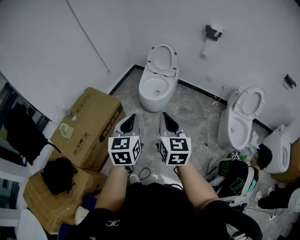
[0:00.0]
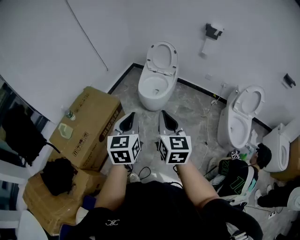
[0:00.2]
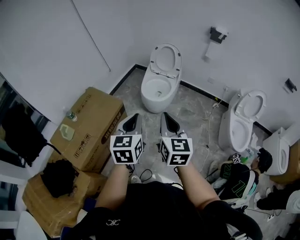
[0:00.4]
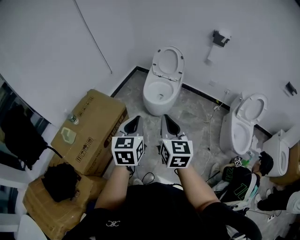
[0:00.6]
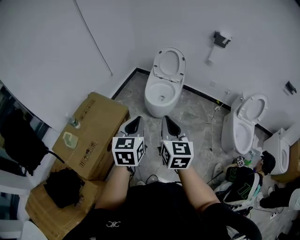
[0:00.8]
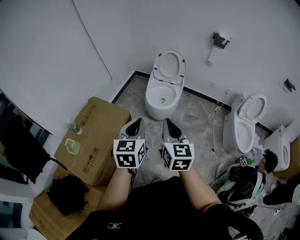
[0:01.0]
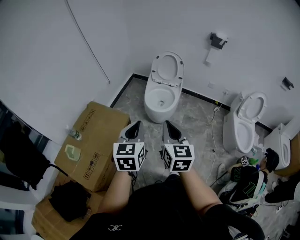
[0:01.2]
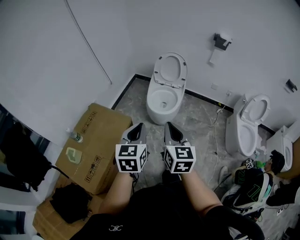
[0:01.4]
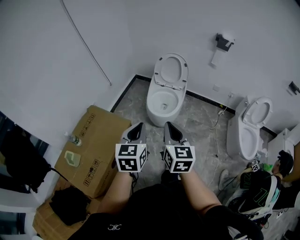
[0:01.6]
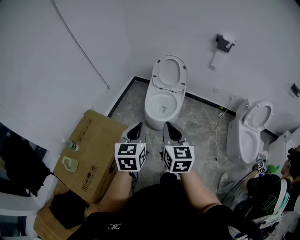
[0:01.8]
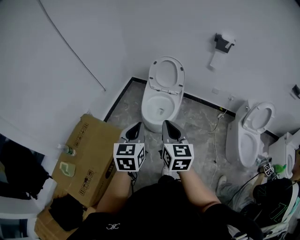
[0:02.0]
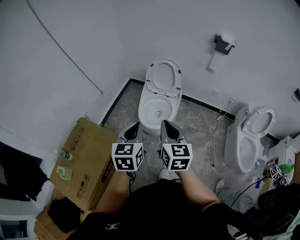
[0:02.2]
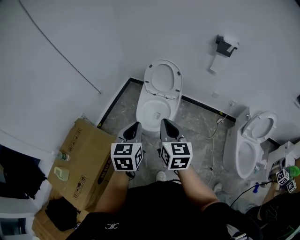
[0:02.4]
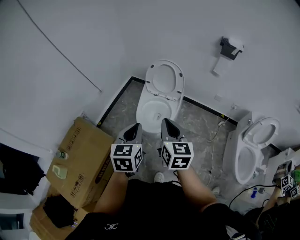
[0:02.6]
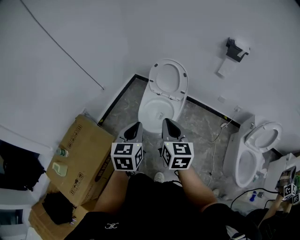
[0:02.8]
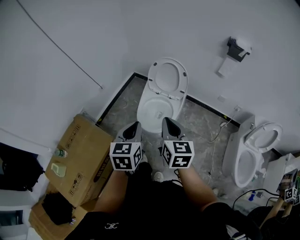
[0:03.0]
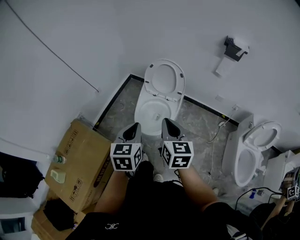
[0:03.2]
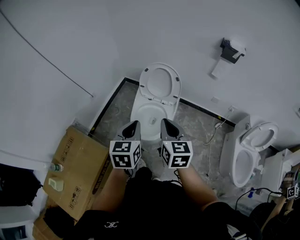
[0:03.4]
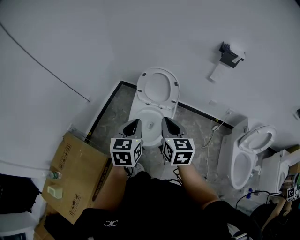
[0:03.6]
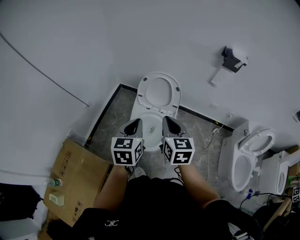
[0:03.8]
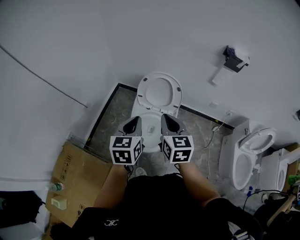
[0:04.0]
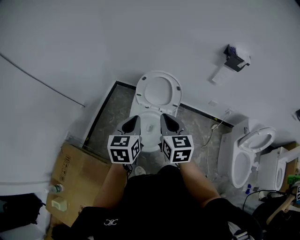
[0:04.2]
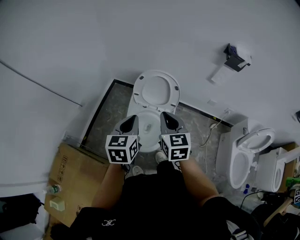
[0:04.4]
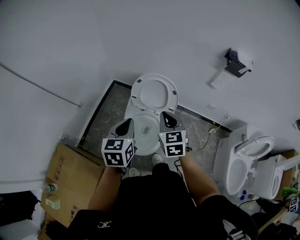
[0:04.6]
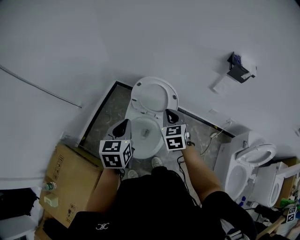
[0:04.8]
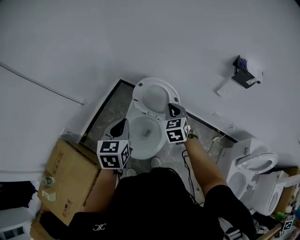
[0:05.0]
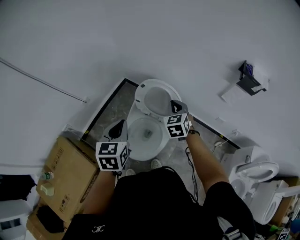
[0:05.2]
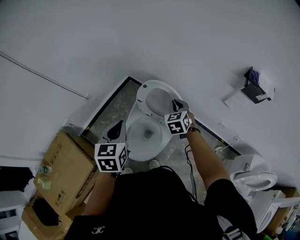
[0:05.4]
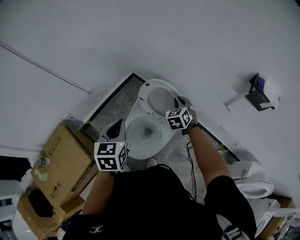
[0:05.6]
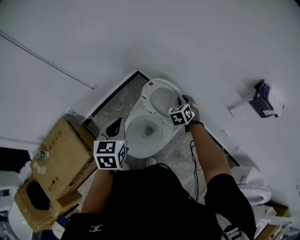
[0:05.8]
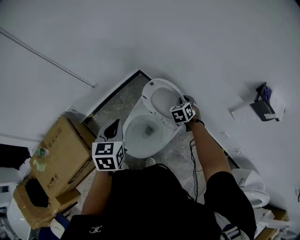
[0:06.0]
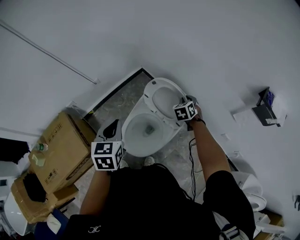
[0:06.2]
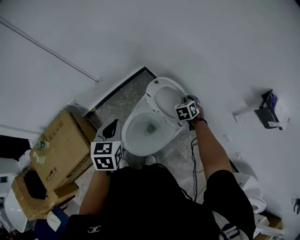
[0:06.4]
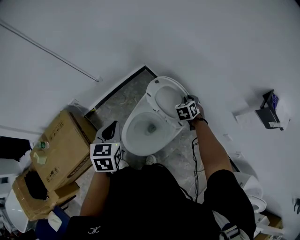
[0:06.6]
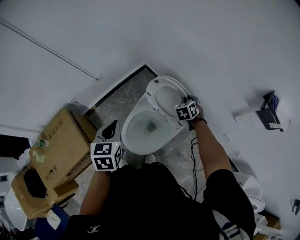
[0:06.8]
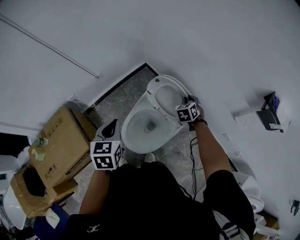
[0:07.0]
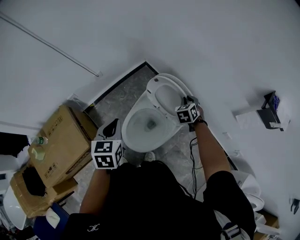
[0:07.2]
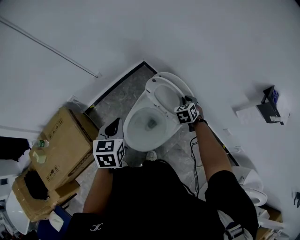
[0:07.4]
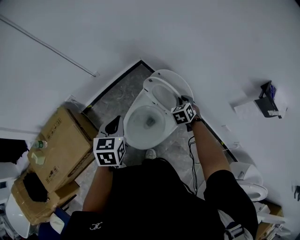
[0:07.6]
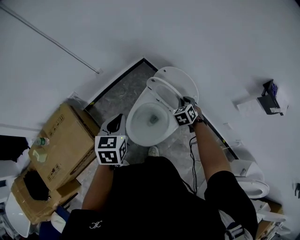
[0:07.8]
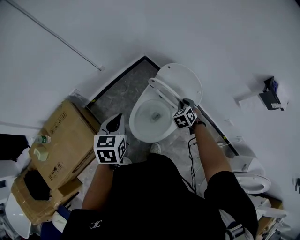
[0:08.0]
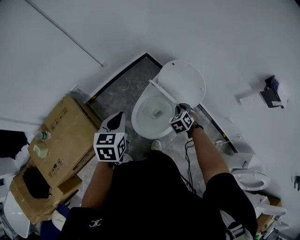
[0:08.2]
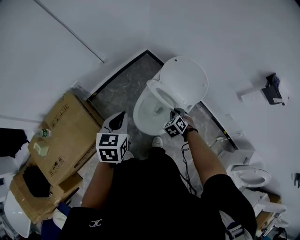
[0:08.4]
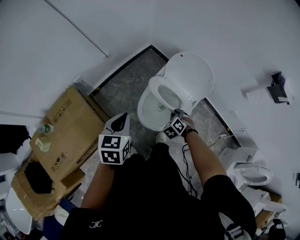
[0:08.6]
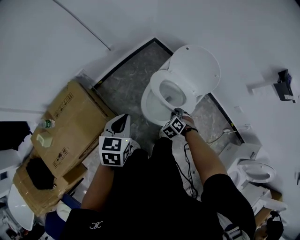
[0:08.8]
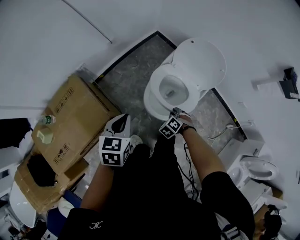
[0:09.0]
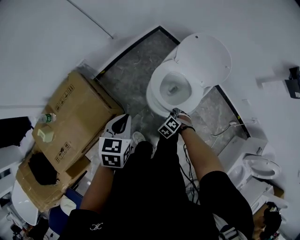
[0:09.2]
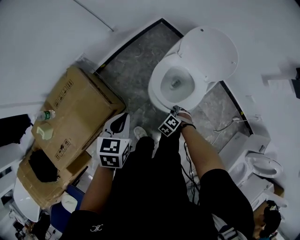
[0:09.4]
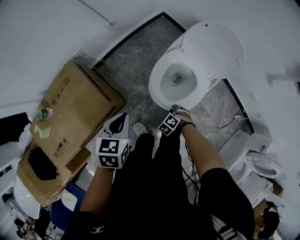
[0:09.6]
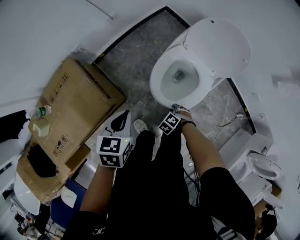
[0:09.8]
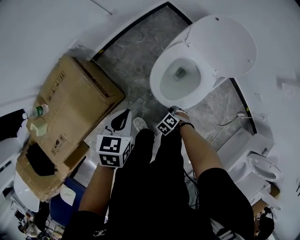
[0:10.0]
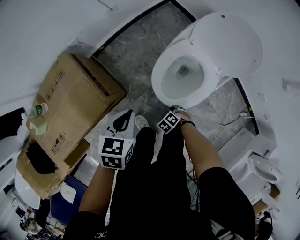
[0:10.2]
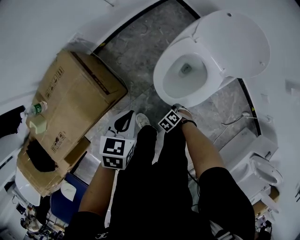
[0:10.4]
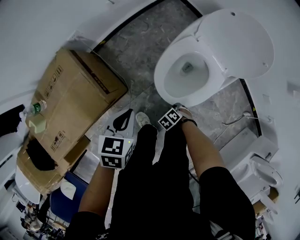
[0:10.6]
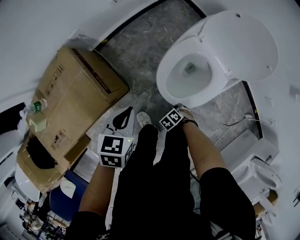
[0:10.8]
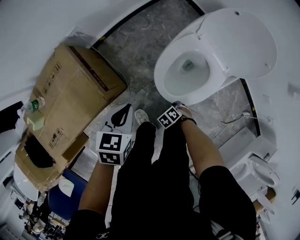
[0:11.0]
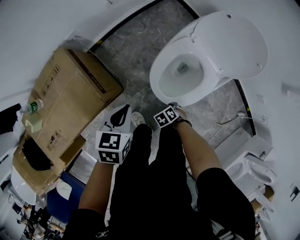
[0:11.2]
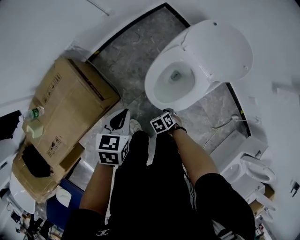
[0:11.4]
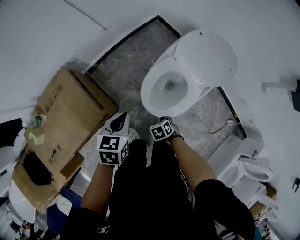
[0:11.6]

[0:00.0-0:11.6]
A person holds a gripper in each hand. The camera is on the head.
0:00.0 to 0:01.4: The grippers both shift to the left and forward by about 20 cm.
0:01.4 to 0:02.8: Both grippers move forward and to the right, approximately 30 cm.
0:02.8 to 0:04.4: Both grippers travel together forward, approximately 25 cm.
0:04.4 to 0:05.8: The right gripper goes roughly 35 cm forward, downward and to the right, and rotates roughly 40 degrees. Meanwhile the left gripper travels forward by about 10 cm, and turns by approximately 30 degrees.
0:05.8 to 0:07.2: The left gripper changes place by about 5 cm; the right gripper moves downward, about 5 cm.
0:07.2 to 0:08.8: The left gripper is displaced backward and to the left by about 20 cm. The right gripper heads backward, to the left and downward, covering some 35 cm, and turns by some 30 degrees.
0:08.8 to 0:10.2: The right gripper heads downward, covering approximately 25 cm, and swivels roughly 20 degrees, while the left gripper is displaced downward by about 15 cm.
0:10.2 to 0:11.6: The right gripper is displaced upward by about 10 cm, and changes its angle by roughly 30 degrees.

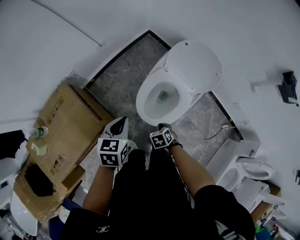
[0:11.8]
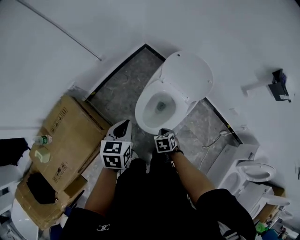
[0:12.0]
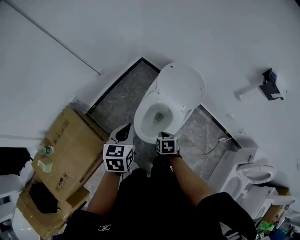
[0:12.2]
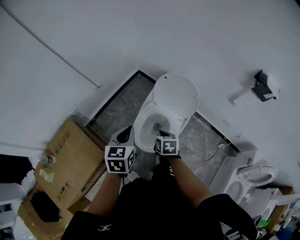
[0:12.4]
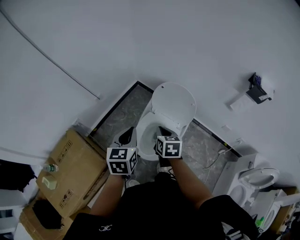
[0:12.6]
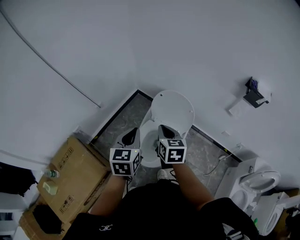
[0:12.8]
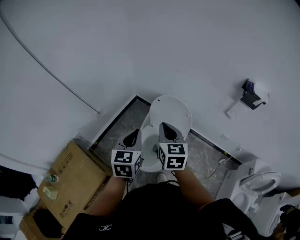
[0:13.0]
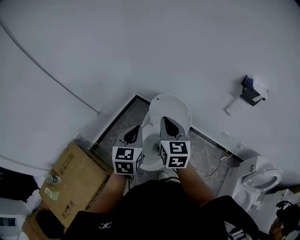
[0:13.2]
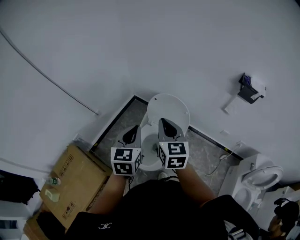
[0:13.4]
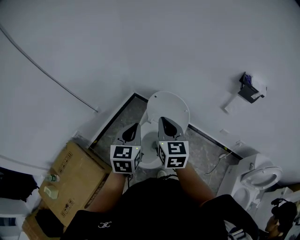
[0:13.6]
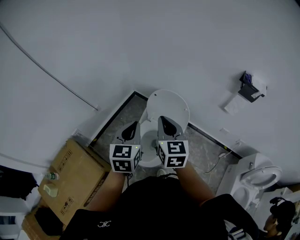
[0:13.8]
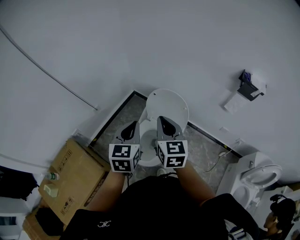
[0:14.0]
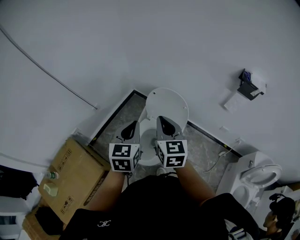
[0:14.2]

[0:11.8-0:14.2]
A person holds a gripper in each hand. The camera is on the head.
0:11.8 to 0:13.0: The right gripper travels upward by roughly 40 cm, and angles its fingers upward, by roughly 50 degrees, while the left gripper heads upward and to the right, covering roughly 25 cm, and changes its angle by about 30 degrees.
0:13.0 to 0:14.2: The grippers make only small movements.

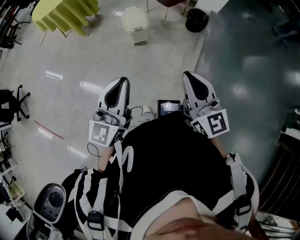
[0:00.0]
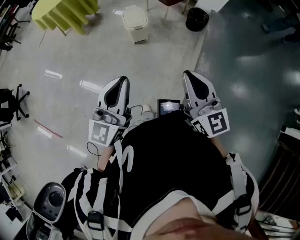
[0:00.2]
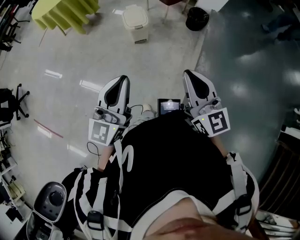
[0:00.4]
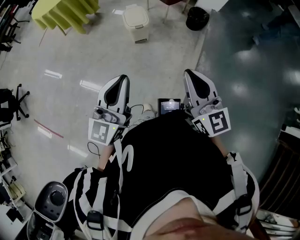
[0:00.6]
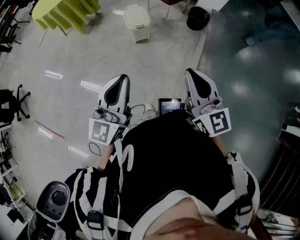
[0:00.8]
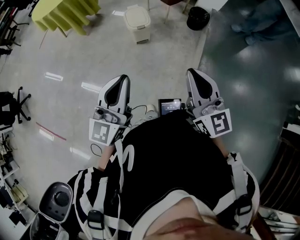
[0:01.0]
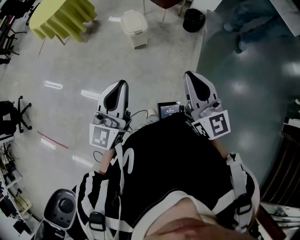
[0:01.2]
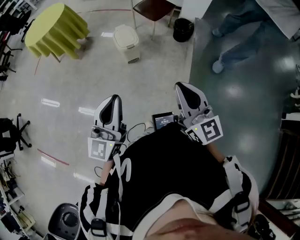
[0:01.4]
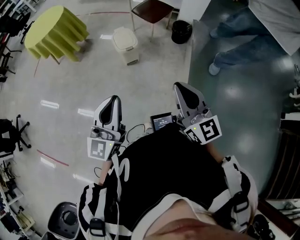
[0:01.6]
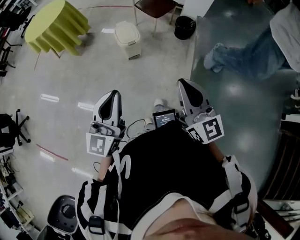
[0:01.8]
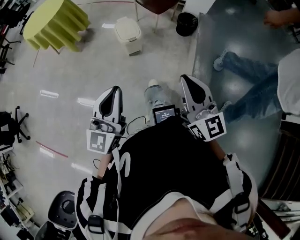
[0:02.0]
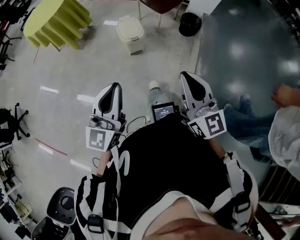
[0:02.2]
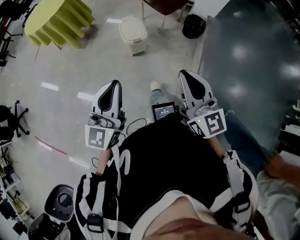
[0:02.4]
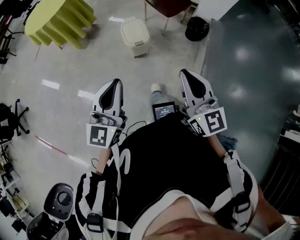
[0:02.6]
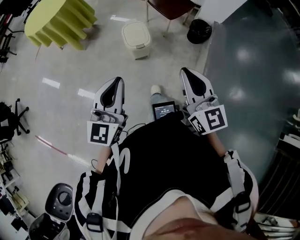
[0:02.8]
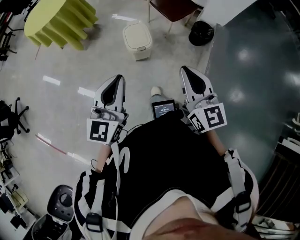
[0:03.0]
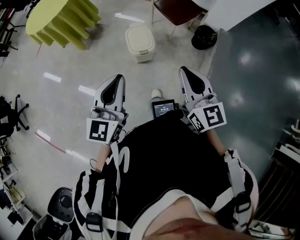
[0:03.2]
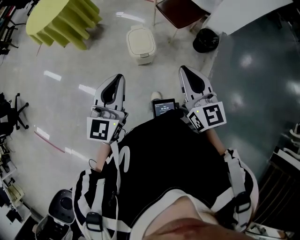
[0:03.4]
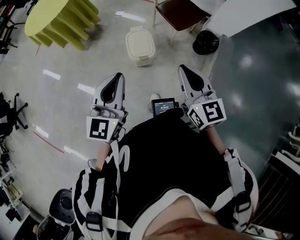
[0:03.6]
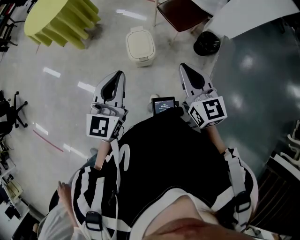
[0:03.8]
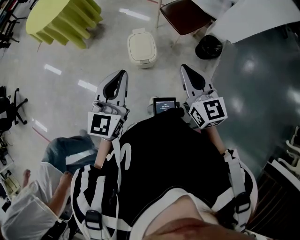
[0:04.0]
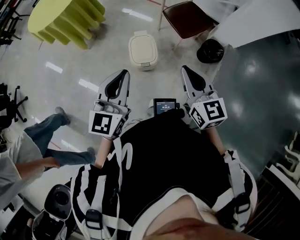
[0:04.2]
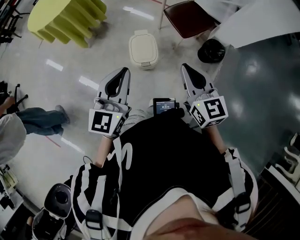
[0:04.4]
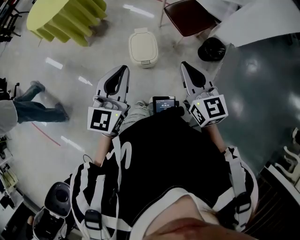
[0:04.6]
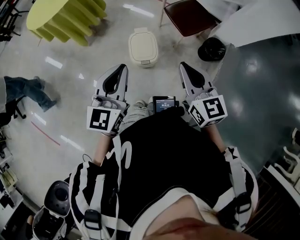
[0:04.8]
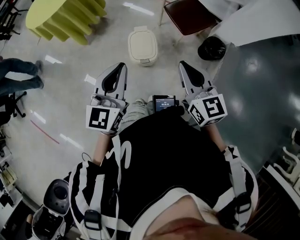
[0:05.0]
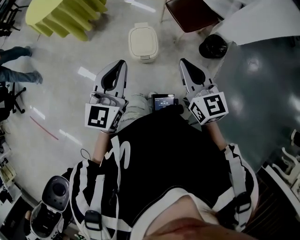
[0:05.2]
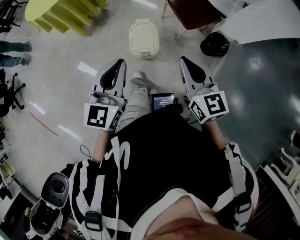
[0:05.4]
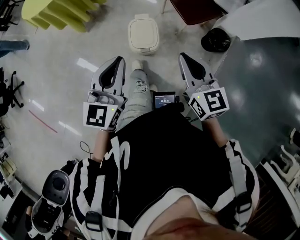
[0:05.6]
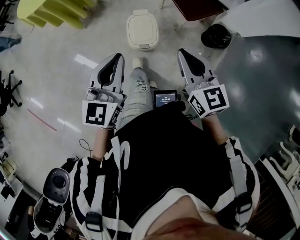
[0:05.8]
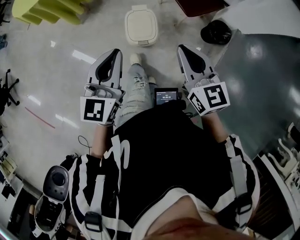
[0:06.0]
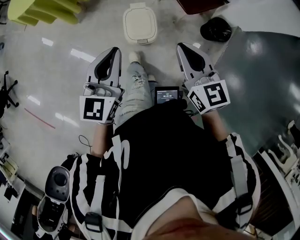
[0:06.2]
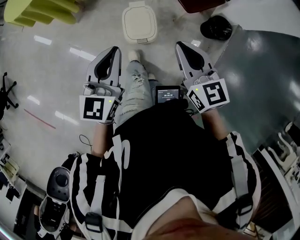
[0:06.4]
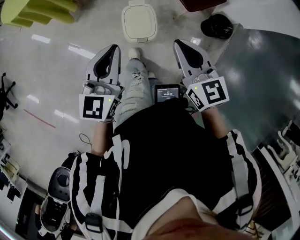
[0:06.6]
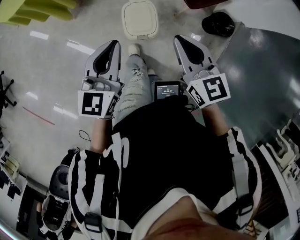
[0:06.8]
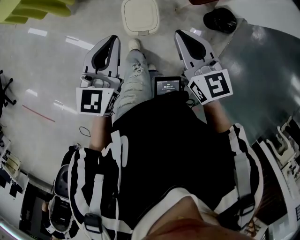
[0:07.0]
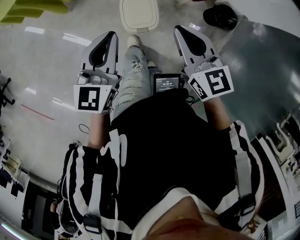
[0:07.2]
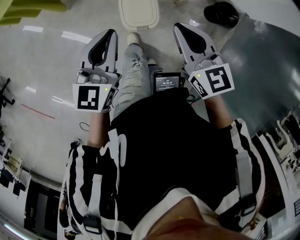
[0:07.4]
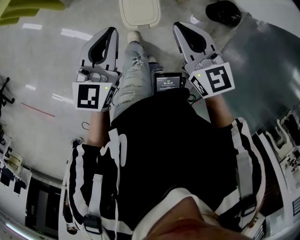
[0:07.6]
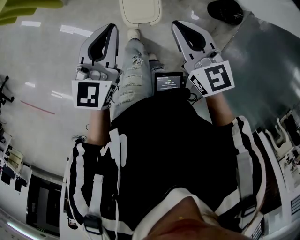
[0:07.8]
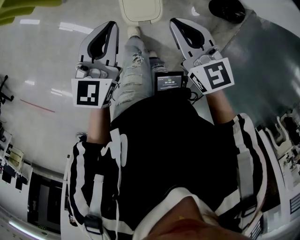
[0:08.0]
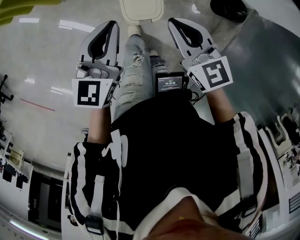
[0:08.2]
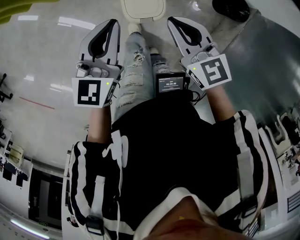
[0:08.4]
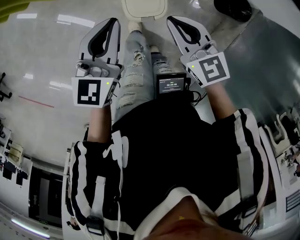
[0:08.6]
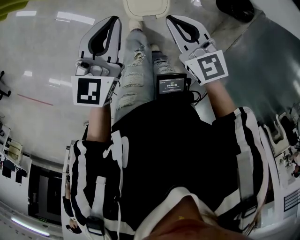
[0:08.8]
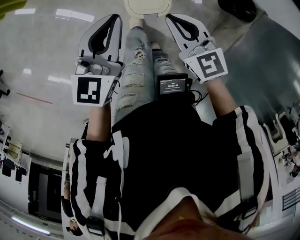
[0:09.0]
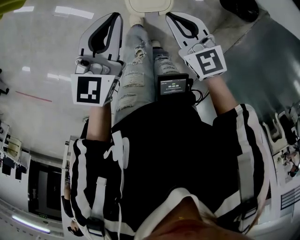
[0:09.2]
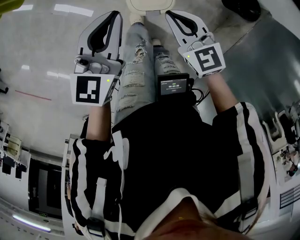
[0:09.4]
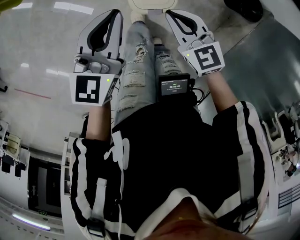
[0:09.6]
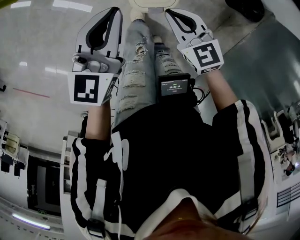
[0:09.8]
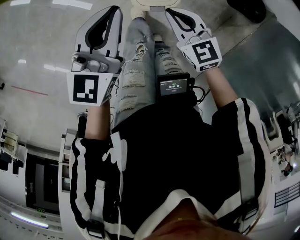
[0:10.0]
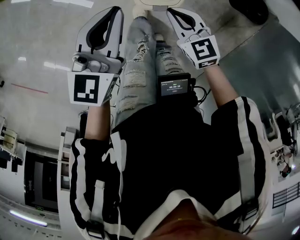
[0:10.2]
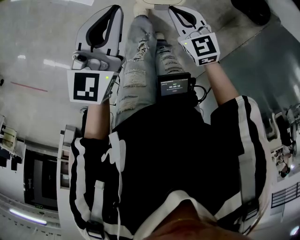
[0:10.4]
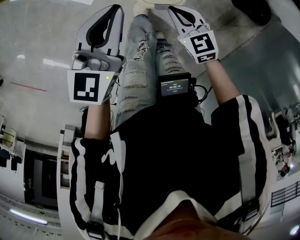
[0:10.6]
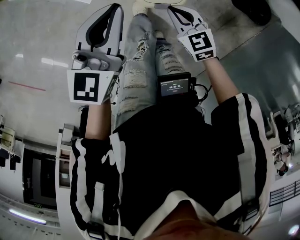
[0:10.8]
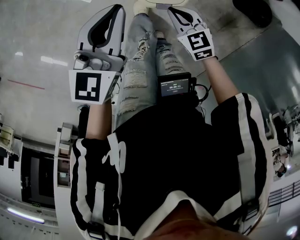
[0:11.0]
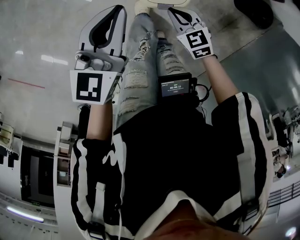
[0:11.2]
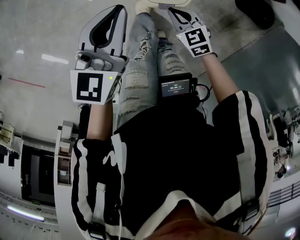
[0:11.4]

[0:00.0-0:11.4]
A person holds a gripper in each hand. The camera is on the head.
0:00.0 to 0:01.4: The left gripper shifts about 5 cm to the left.
0:01.4 to 0:02.8: The two grippers go approximately 20 cm forward.
0:02.8 to 0:04.2: Both grippers move forward, some 25 cm.
0:04.2 to 0:05.6: The right gripper shifts by some 5 cm.
0:05.6 to 0:07.2: Both grippers travel together forward and downward, approximately 15 cm.
0:07.2 to 0:08.6: The left gripper goes roughly 10 cm downward and forward. Meanwhile the right gripper heads downward, covering approximately 10 cm.
0:08.6 to 0:10.0: The left gripper is displaced downward by approximately 10 cm. Meanwhile the right gripper is displaced downward by approximately 15 cm.
0:10.0 to 0:11.4: The right gripper moves downward, approximately 10 cm.
